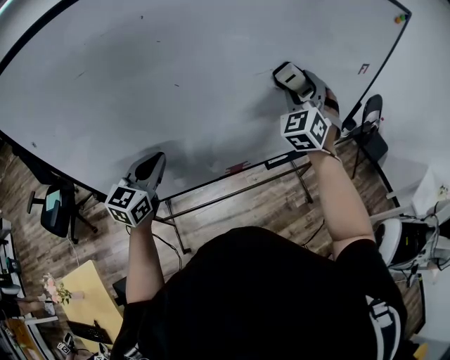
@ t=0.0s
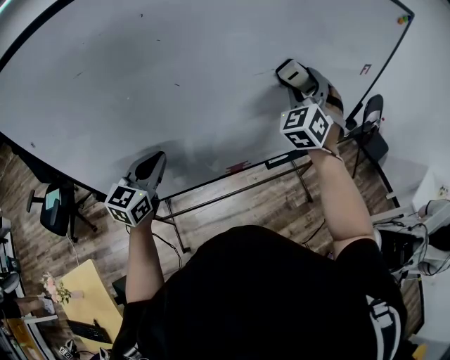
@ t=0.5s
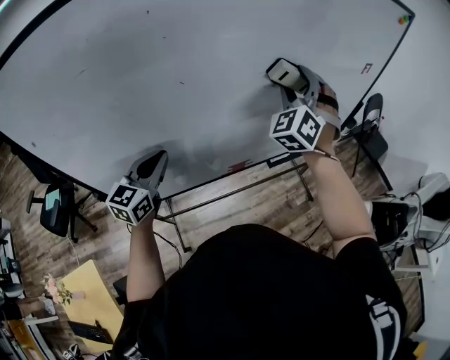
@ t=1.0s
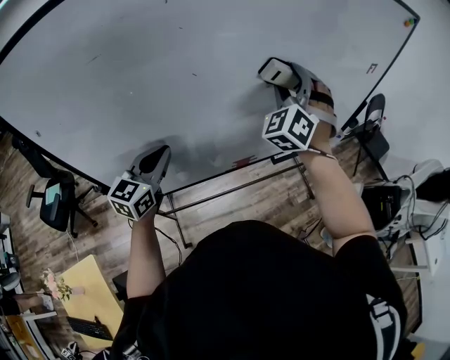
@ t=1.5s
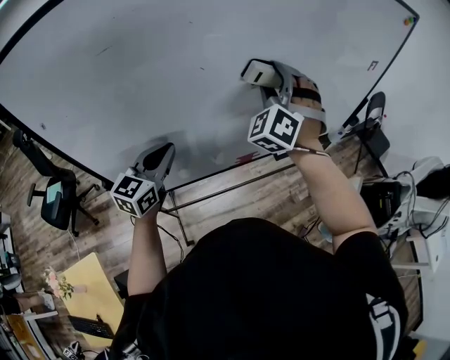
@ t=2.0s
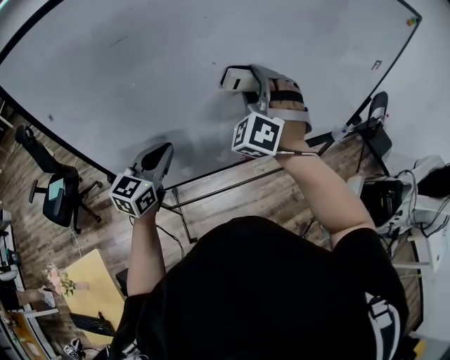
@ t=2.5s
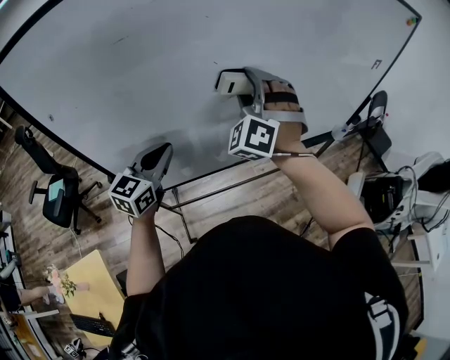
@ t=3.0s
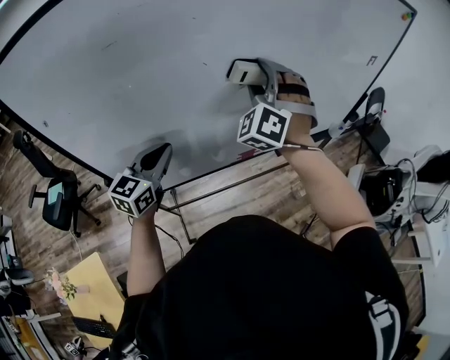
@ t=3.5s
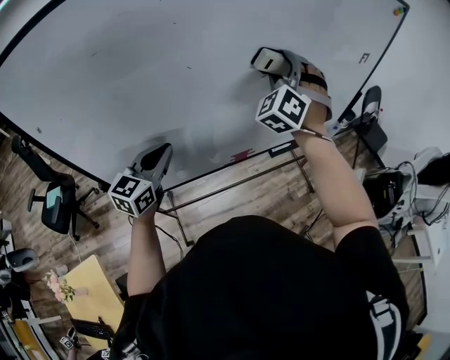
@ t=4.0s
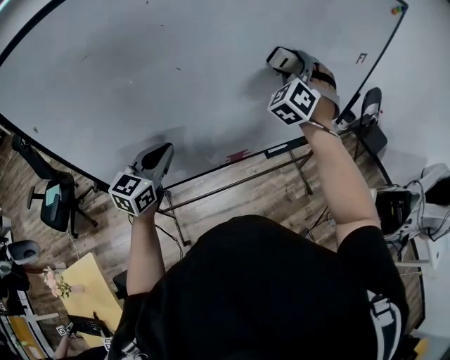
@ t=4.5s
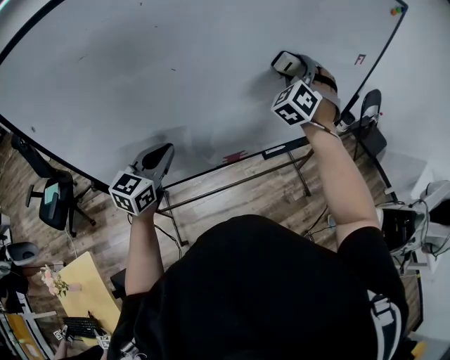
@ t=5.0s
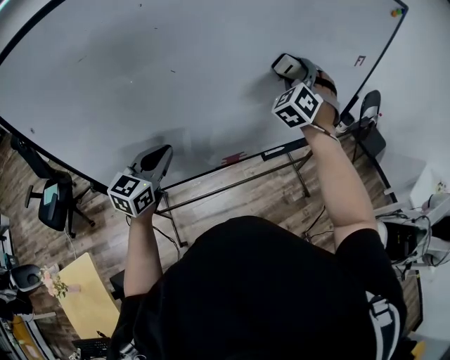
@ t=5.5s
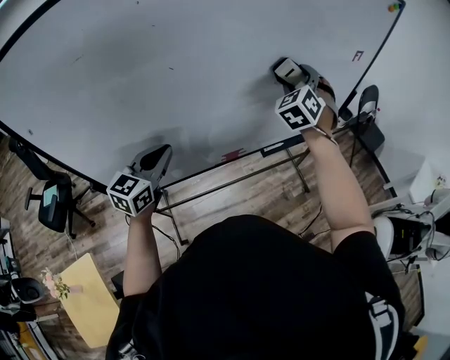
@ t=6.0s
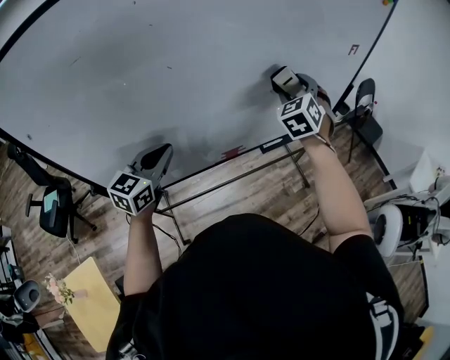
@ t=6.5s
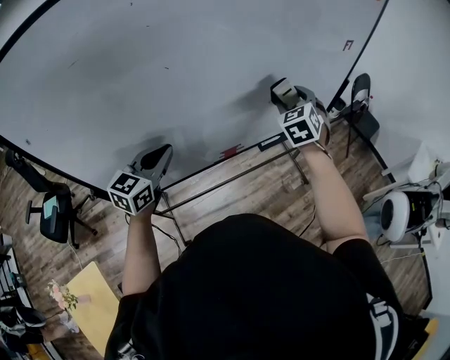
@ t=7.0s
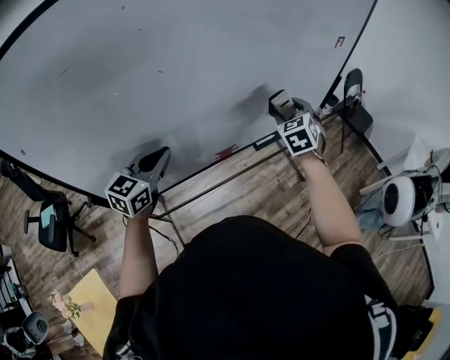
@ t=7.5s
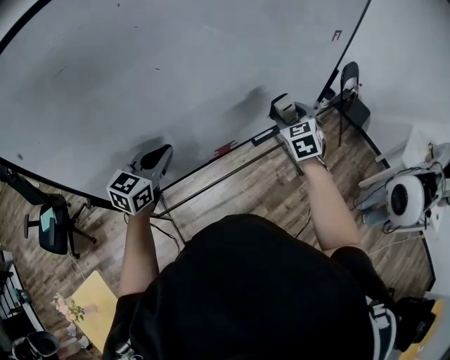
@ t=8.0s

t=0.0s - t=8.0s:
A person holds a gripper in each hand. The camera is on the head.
t=0.0s - t=2.0s: The right gripper moves to the left and backward, roughly 15 cm.
t=4.0s - t=6.0s: The right gripper goes about 10 cm to the right, downward and forward.
t=6.0s - t=8.0s: The right gripper goes roughly 15 cm downward, backward and to the right, and changes its angle by approximately 30 degrees.

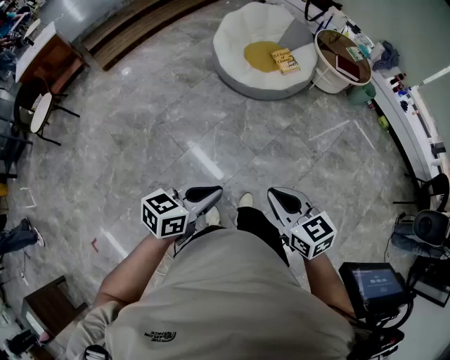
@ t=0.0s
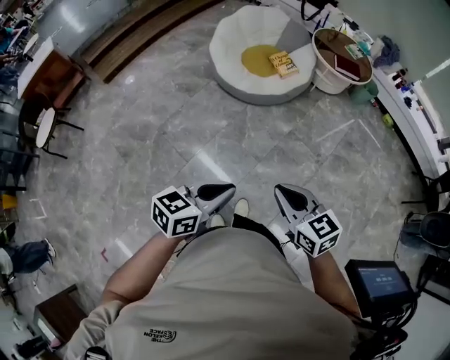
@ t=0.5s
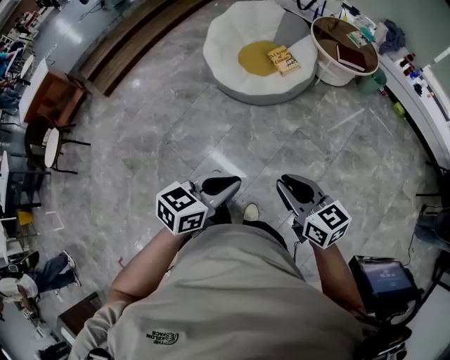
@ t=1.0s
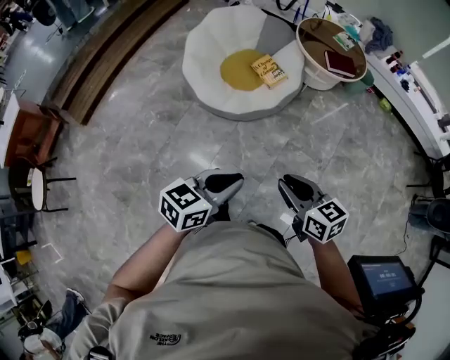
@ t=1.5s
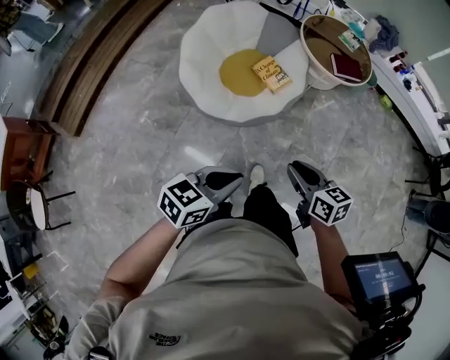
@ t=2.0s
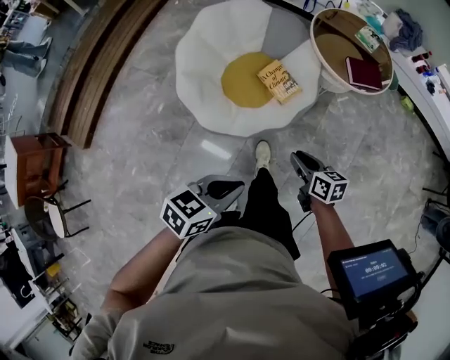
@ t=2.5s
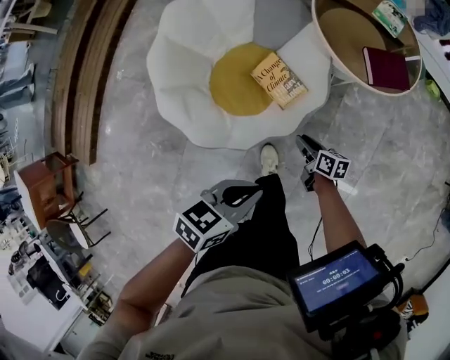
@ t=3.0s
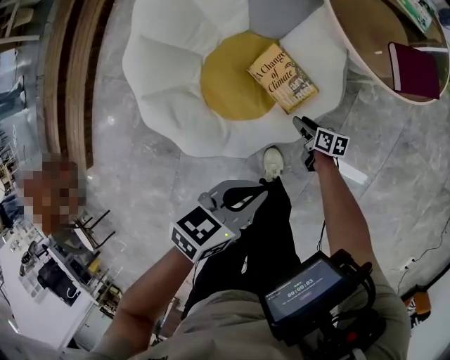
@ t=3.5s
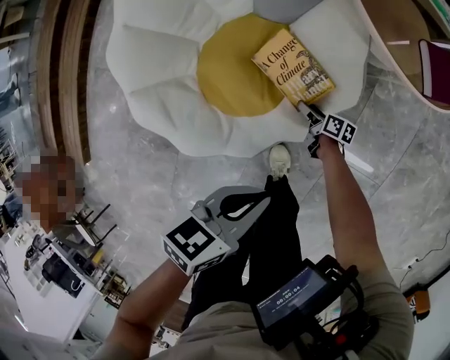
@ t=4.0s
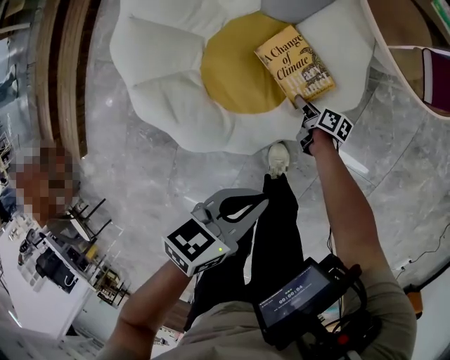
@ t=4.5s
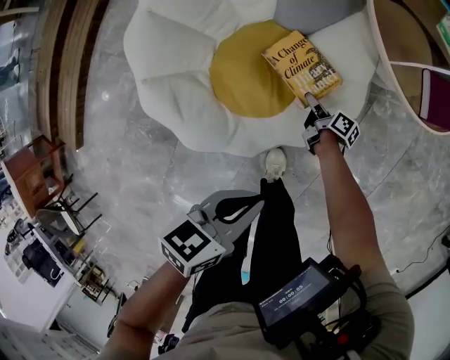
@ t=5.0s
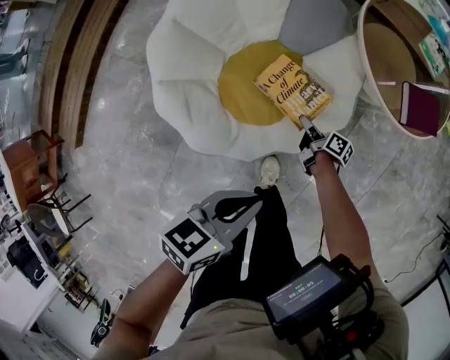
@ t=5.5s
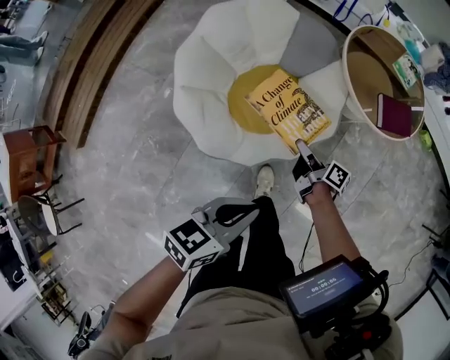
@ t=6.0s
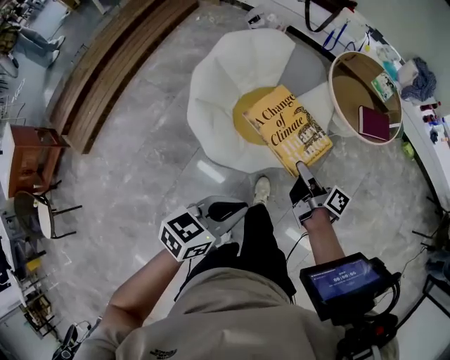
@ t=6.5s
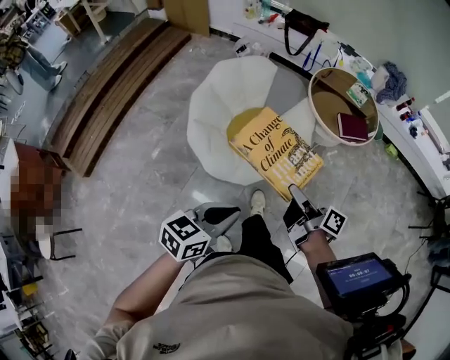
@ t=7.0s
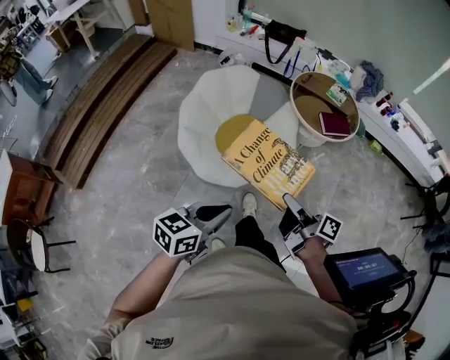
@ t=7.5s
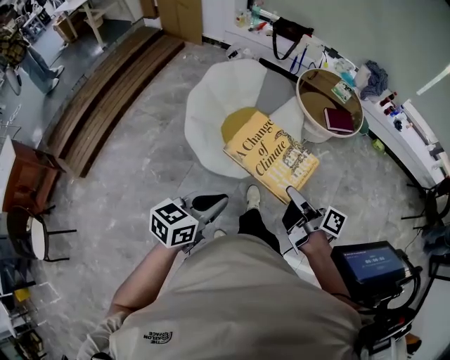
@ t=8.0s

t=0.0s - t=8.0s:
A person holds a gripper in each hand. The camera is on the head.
t=0.0s - t=2.0s: The pair of grippers is taken forward, some 50 cm. The left gripper rotates approximately 20 degrees. Meanwhile the right gripper swivels some 30 degrees.
t=2.0s - t=4.0s: The two grippers travel together, forward, some 50 cm. The right gripper goes approximately 60 cm downward, rolls clockwise, seen from behind, by roughly 50 degrees, and opens its fingers. Meanwhile the left gripper goes roughly 30 cm downward, and rotates approximately 20 degrees.
t=4.0s - t=6.0s: The right gripper goes some 35 cm upward, changes its angle by about 20 degrees, and closes its fingers. Meanwhile the left gripper goes some 25 cm upward and backward.
t=6.0s - t=8.0s: The left gripper goes some 30 cm backward and upward. The right gripper goes some 50 cm backward and upward.

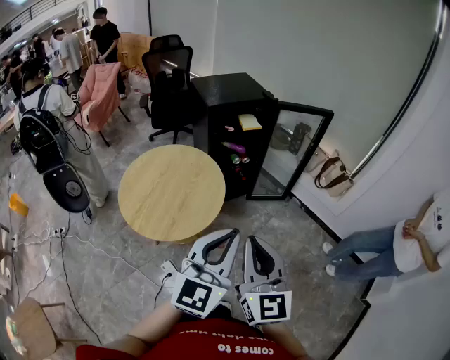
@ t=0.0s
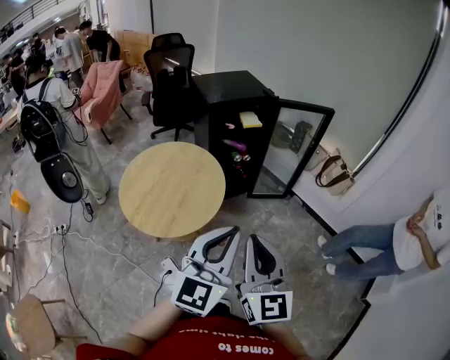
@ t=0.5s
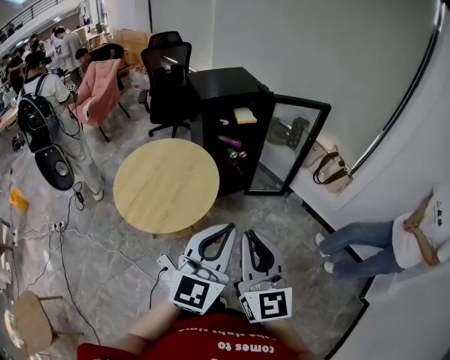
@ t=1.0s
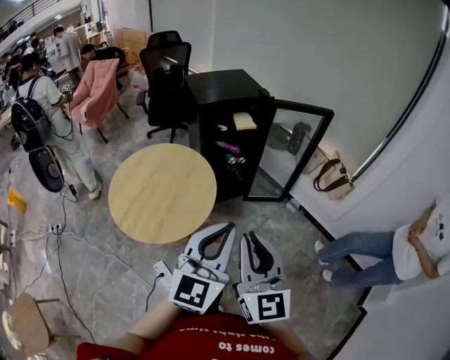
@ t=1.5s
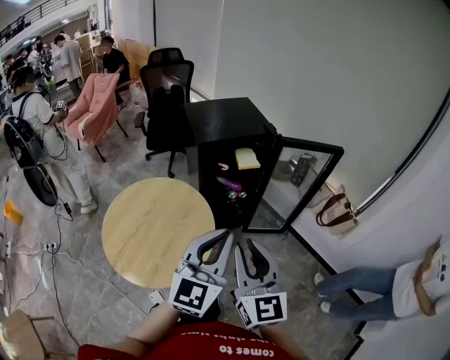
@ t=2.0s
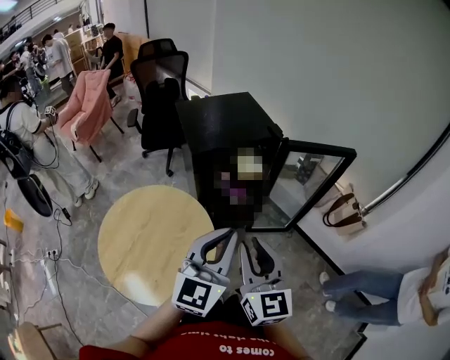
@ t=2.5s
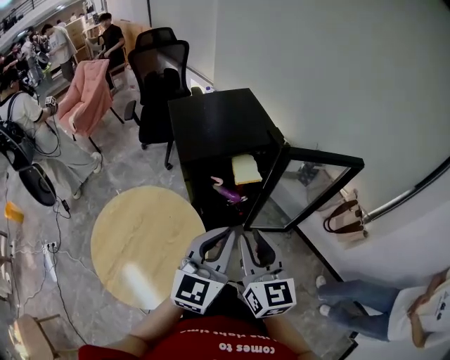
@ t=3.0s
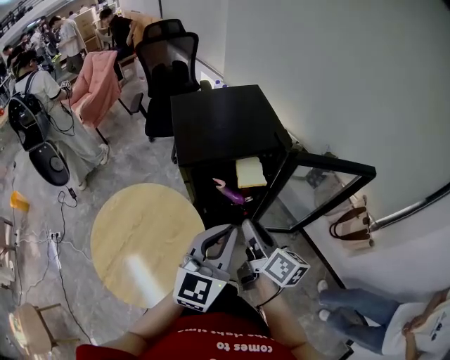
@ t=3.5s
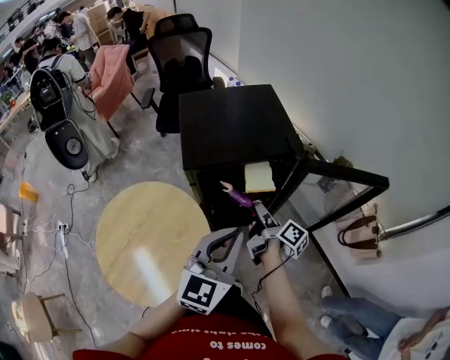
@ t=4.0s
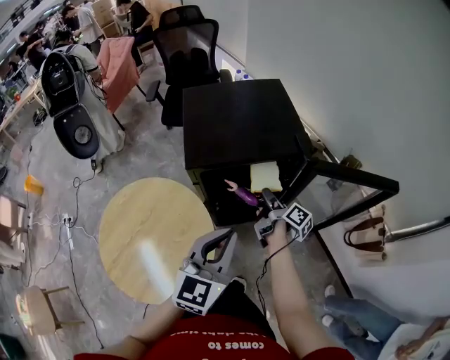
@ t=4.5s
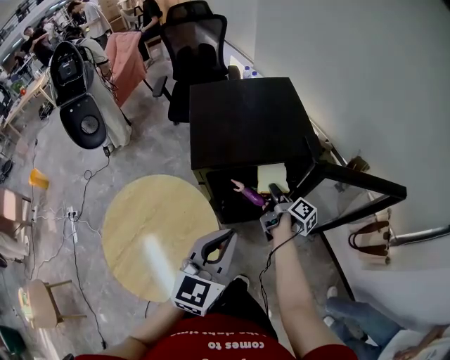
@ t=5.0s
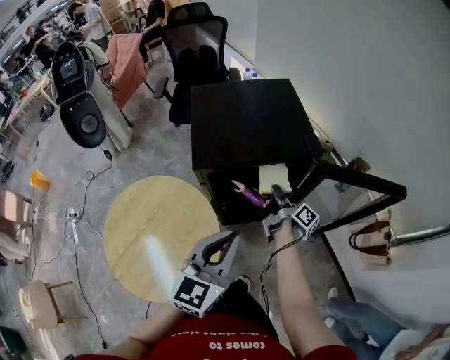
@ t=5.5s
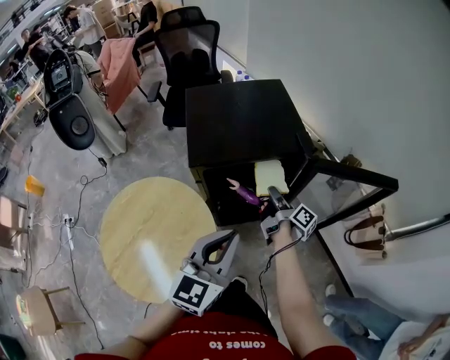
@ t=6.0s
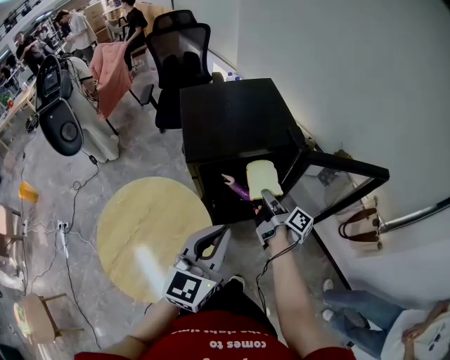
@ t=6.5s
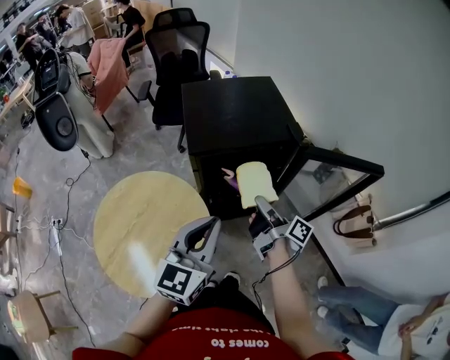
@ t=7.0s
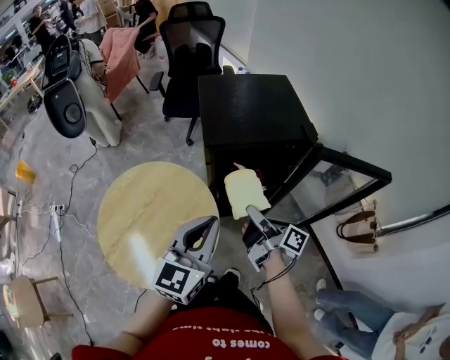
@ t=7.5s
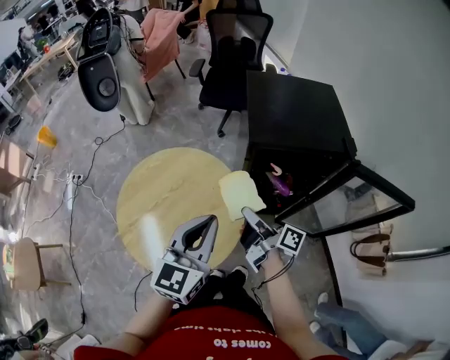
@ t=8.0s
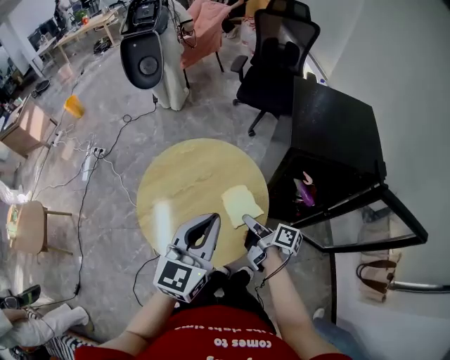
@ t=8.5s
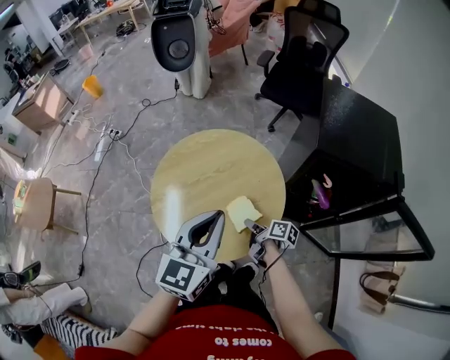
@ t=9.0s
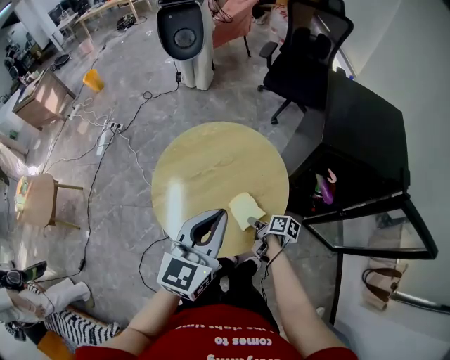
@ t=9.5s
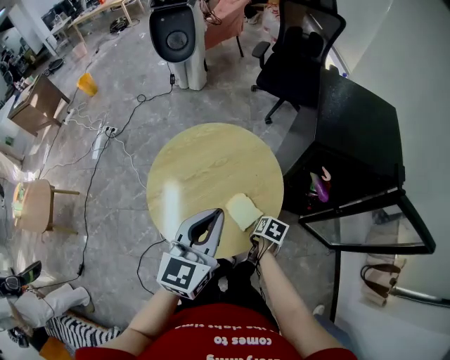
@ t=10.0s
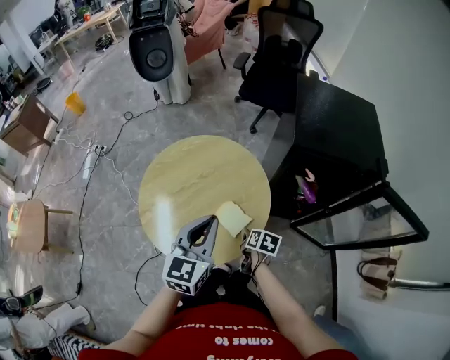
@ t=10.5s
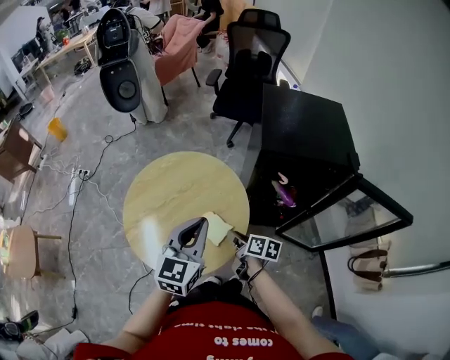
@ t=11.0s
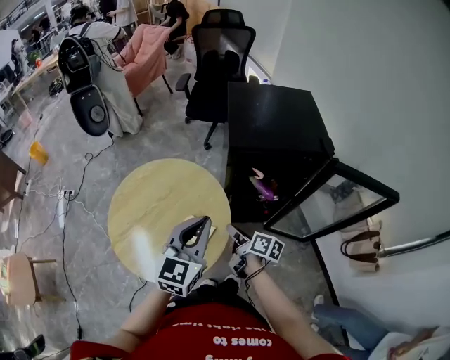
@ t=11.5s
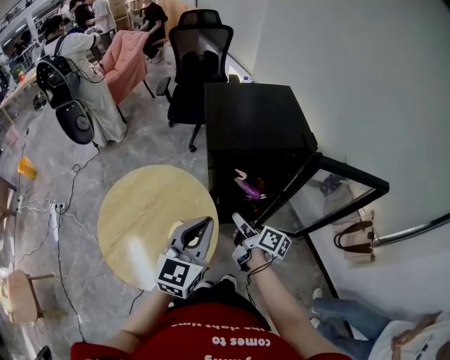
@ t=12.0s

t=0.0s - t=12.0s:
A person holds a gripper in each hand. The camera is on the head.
t=0.0s - t=2.0s: The grippers both shift forward by some 20 cm.
t=2.0s - t=4.0s: The right gripper travels forward and downward by some 50 cm, and rolls clockwise, seen from behind, by roughly 80 degrees; the left gripper goes about 25 cm forward.
t=4.0s - t=6.0s: The right gripper goes some 5 cm forward.
t=6.0s - t=8.0s: The left gripper travels to the left by about 15 cm. The right gripper moves to the left and backward, roughly 25 cm, and rotates about 30 degrees.
t=8.0s - t=10.0s: The left gripper is displaced to the left by about 10 cm. Meanwhile the right gripper is displaced downward by some 25 cm, and points its fingers approximately 70 degrees further downward.
t=10.0s - t=12.0s: The right gripper travels upward and to the right by approximately 20 cm, and tilts its fingers some 50 degrees upward. Meanwhile the left gripper goes about 15 cm to the right, and changes its angle by about 30 degrees.
